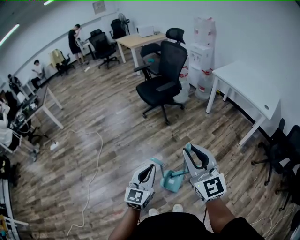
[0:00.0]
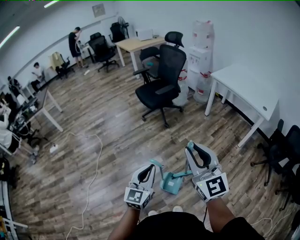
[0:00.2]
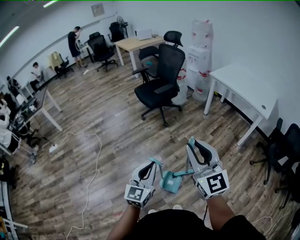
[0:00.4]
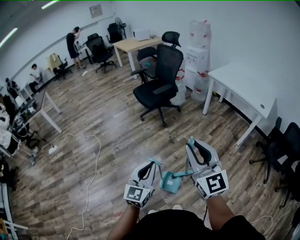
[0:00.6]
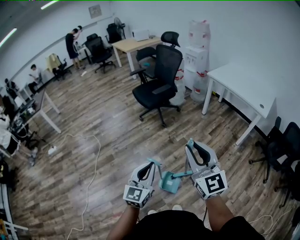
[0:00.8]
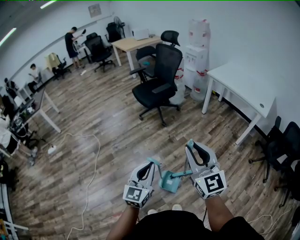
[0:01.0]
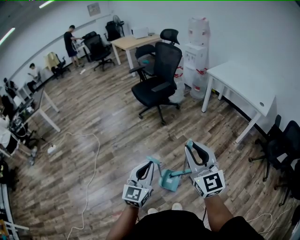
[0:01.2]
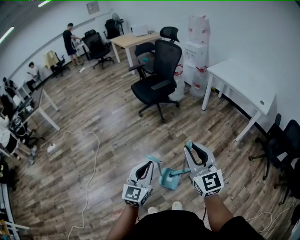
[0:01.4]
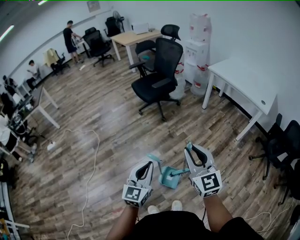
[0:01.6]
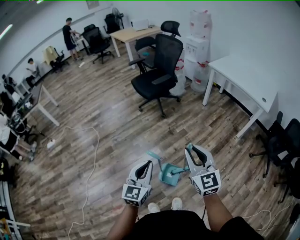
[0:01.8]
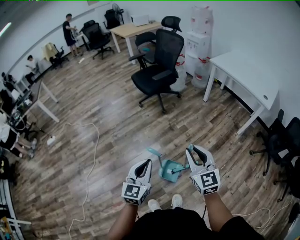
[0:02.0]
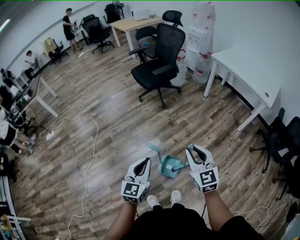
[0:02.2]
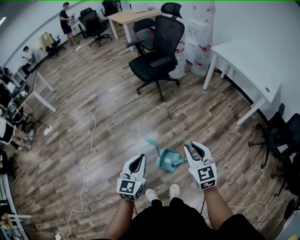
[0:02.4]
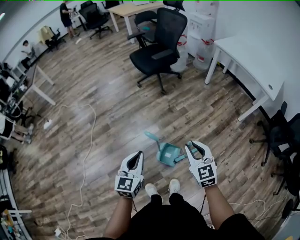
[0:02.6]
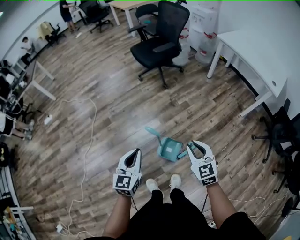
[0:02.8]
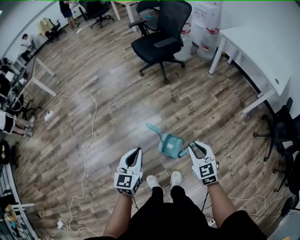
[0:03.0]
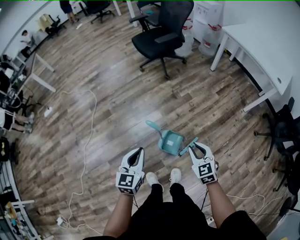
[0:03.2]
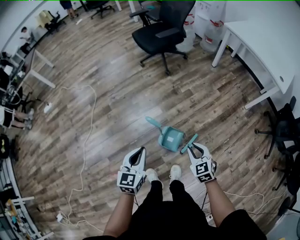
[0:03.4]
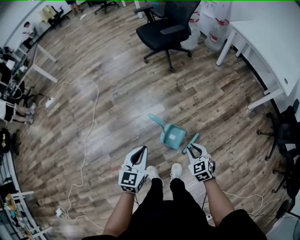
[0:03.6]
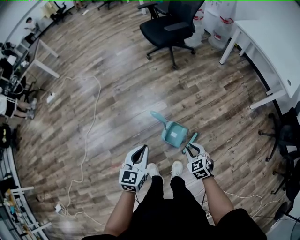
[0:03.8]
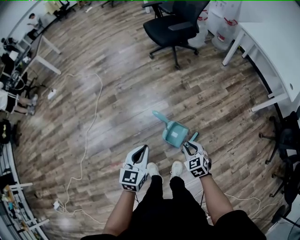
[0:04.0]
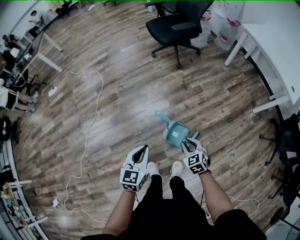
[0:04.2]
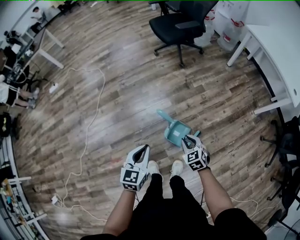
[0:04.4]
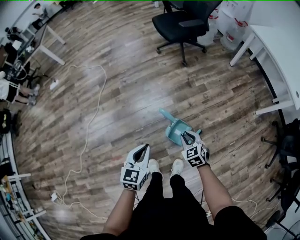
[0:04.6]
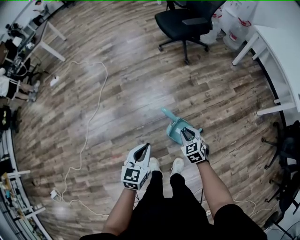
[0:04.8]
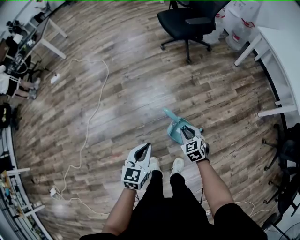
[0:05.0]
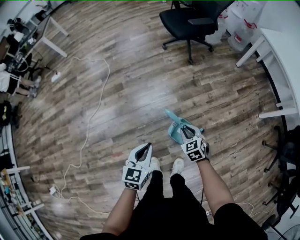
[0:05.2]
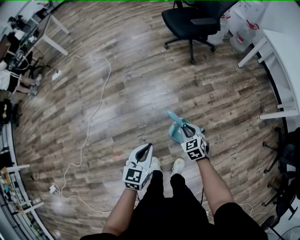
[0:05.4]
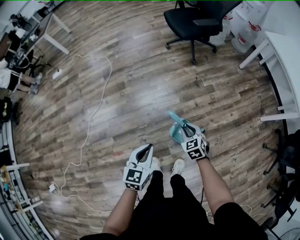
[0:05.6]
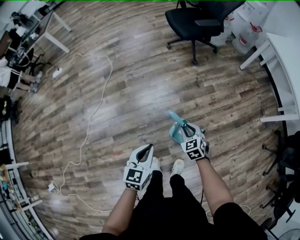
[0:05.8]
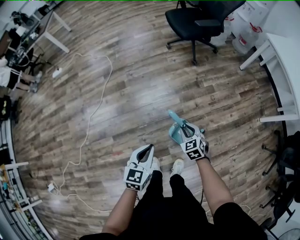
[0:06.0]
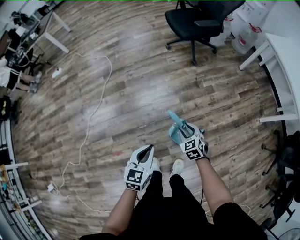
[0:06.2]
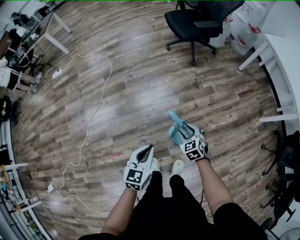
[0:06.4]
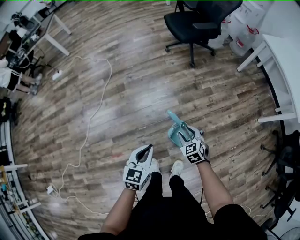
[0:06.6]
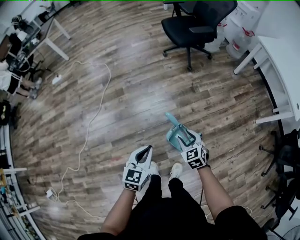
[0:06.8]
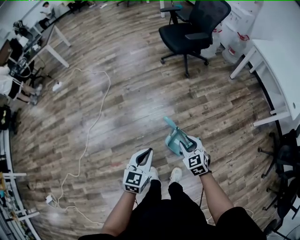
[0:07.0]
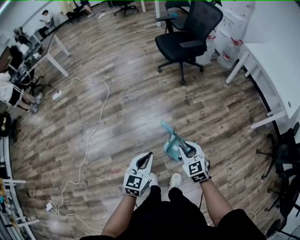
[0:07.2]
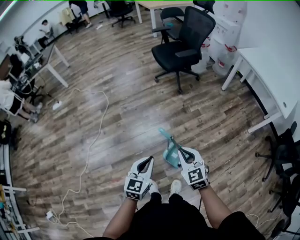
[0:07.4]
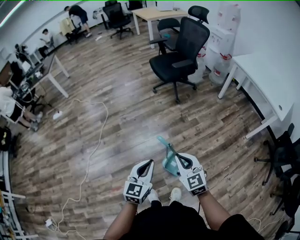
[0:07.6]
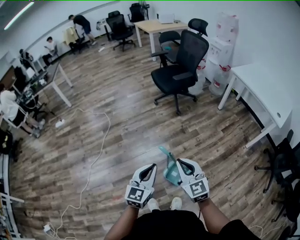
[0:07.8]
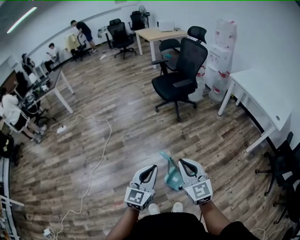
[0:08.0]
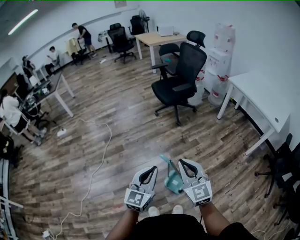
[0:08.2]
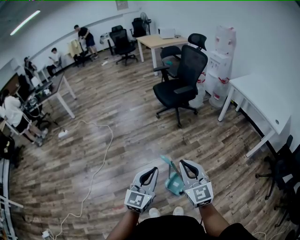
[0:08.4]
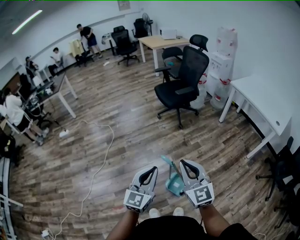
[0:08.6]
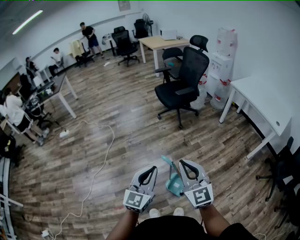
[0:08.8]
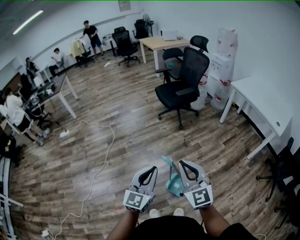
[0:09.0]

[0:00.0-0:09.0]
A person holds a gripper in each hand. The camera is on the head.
0:00.0 to 0:01.6: The right gripper heads downward, covering approximately 5 cm.
0:01.6 to 0:03.0: The right gripper shifts roughly 20 cm downward, and rotates approximately 30 degrees. The left gripper travels downward by approximately 10 cm.
0:03.0 to 0:04.4: The right gripper heads downward and to the left, covering some 15 cm; the left gripper travels downward by approximately 5 cm.
0:04.4 to 0:06.0: The right gripper goes approximately 10 cm forward and to the left.
0:06.0 to 0:07.6: The right gripper travels upward and backward by some 25 cm, rotates some 30 degrees, and closes. Meanwhile the left gripper moves upward, approximately 10 cm.
0:07.6 to 0:09.0: The grippers both shift upward by roughly 15 cm. The right gripper rotates about 20 degrees.

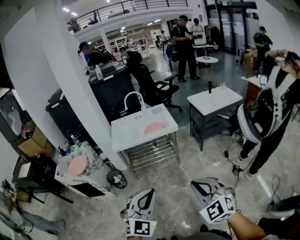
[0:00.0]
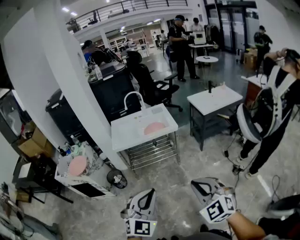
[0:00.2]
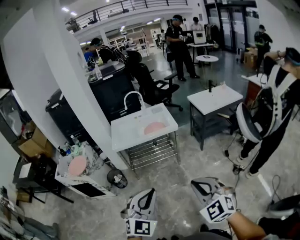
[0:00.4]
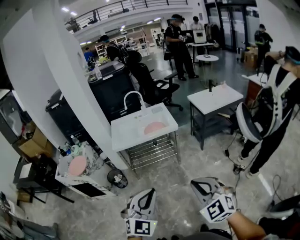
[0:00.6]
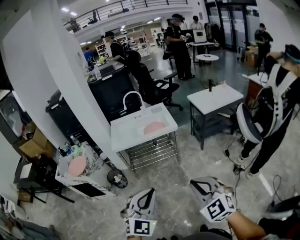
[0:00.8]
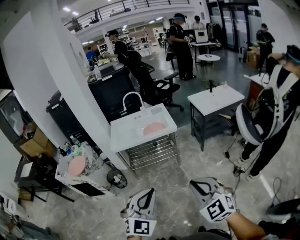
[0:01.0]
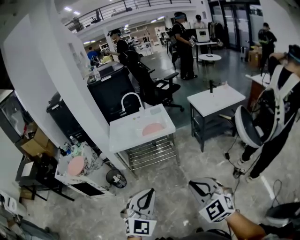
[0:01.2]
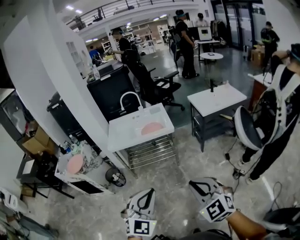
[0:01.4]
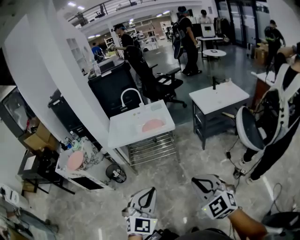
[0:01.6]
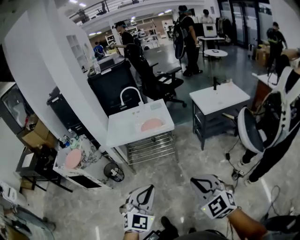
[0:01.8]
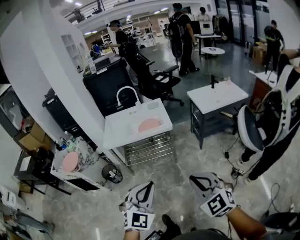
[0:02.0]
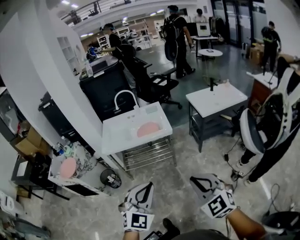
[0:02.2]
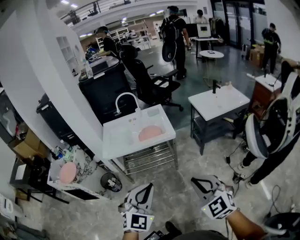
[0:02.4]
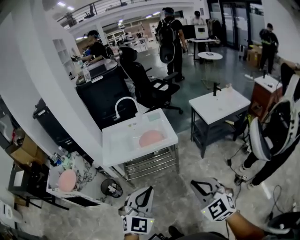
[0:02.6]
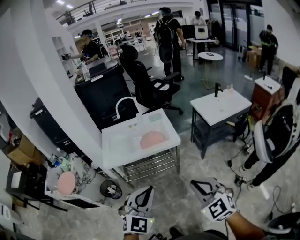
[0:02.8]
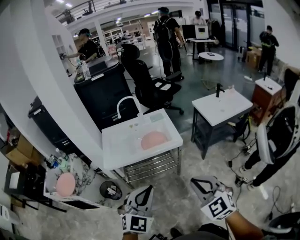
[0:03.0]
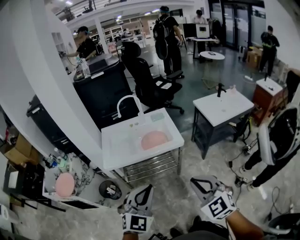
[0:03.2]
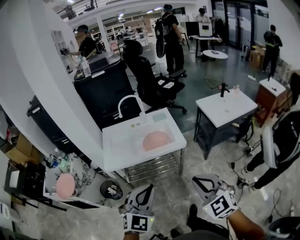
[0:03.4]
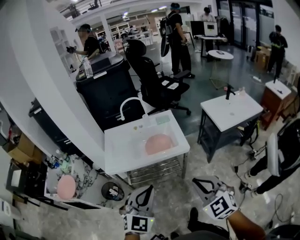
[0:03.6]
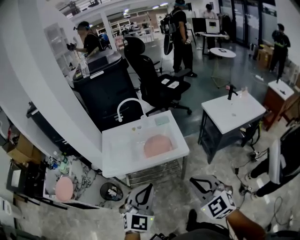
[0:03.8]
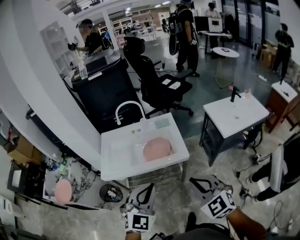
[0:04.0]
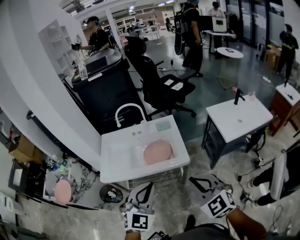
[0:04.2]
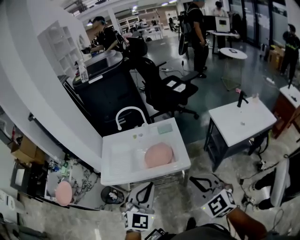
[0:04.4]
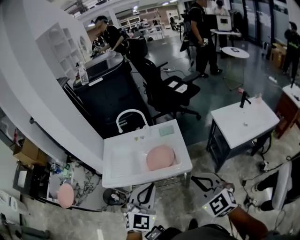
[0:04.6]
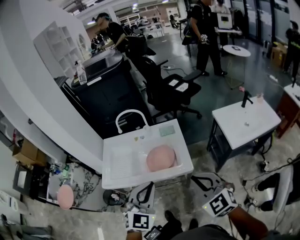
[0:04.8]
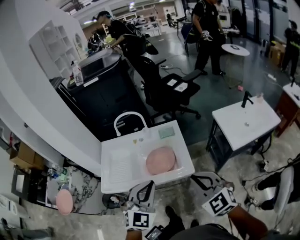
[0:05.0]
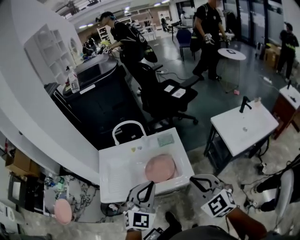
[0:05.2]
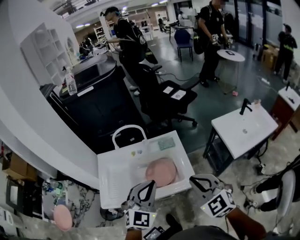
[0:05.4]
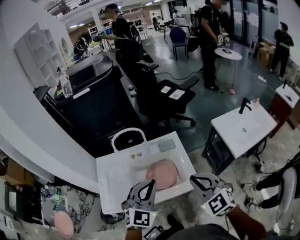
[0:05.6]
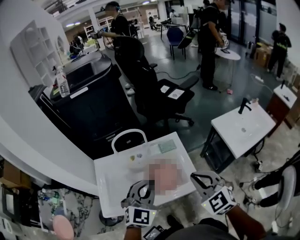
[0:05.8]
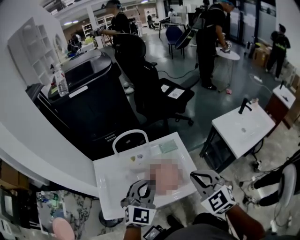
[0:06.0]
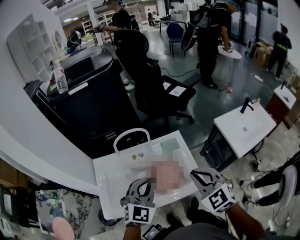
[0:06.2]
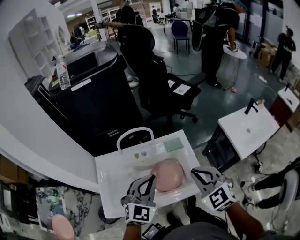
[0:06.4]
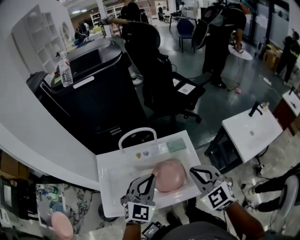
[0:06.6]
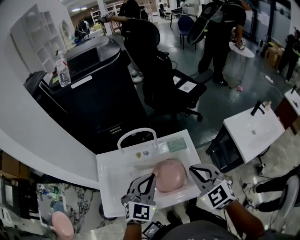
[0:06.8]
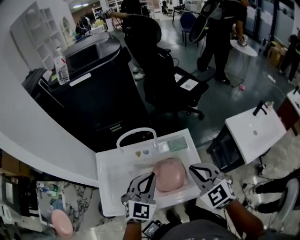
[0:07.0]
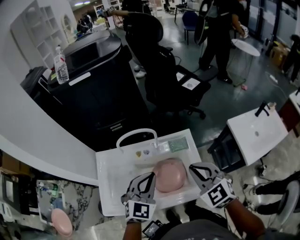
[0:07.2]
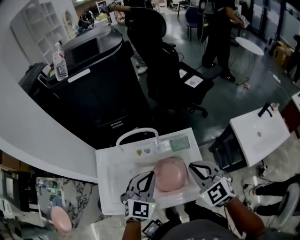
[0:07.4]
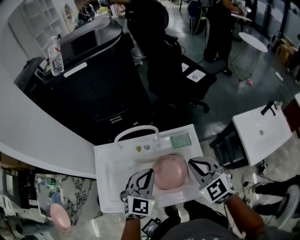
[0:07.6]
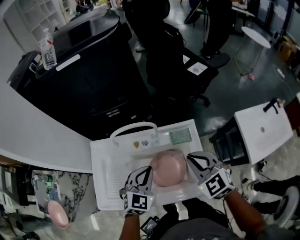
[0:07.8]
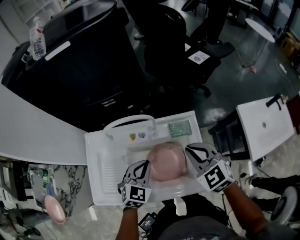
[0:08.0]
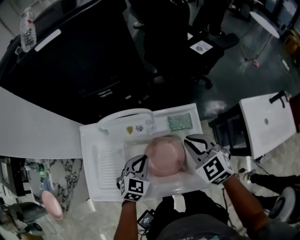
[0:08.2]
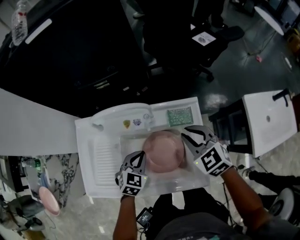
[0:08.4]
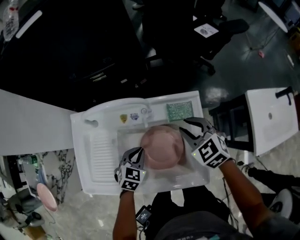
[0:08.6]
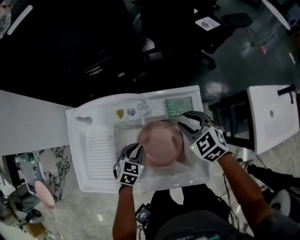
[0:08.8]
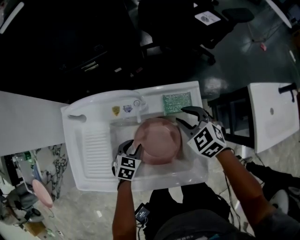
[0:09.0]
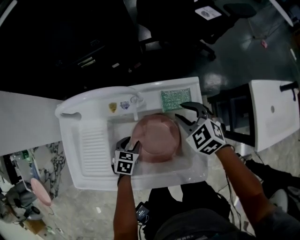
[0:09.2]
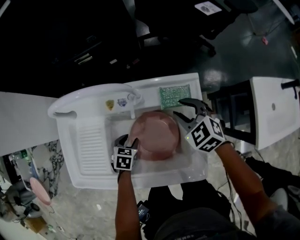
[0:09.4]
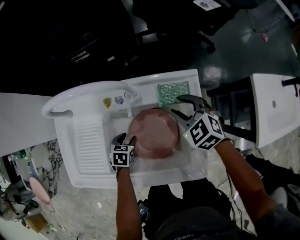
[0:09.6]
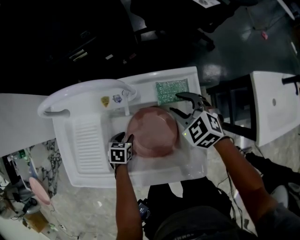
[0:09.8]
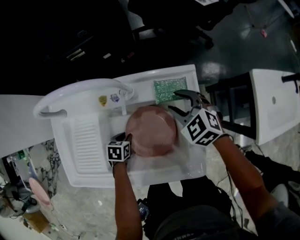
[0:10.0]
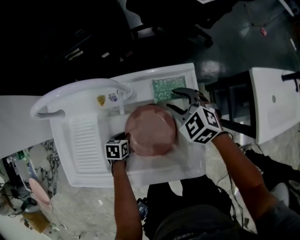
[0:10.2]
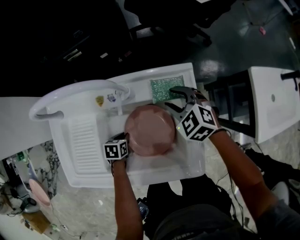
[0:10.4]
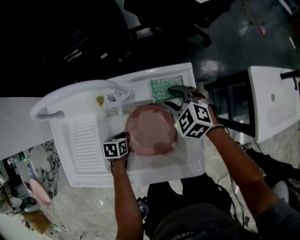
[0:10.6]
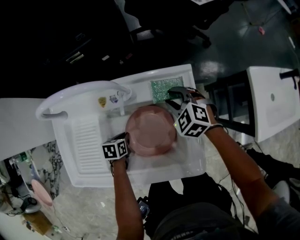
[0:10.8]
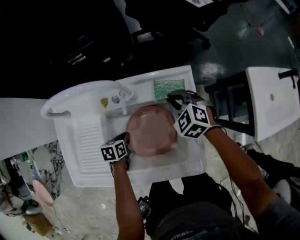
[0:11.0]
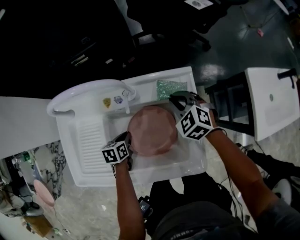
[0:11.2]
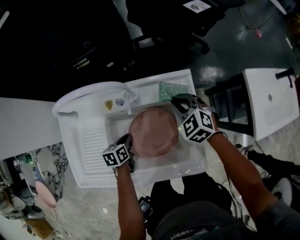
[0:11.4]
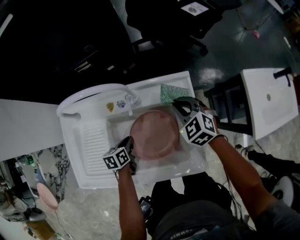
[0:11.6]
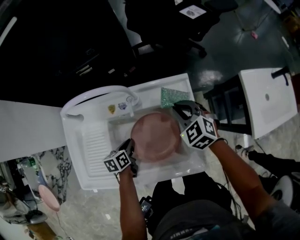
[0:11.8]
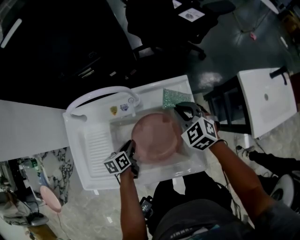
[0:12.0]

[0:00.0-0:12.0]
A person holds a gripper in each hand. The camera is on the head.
0:00.0 to 0:01.6: Both grippers move to the right, about 10 cm.
0:01.6 to 0:03.0: The two grippers go some 25 cm forward and to the left.
0:03.0 to 0:04.4: Both grippers move forward, roughly 25 cm.
0:04.4 to 0:06.0: The grippers both shift forward by roughly 25 cm.
0:06.0 to 0:07.6: The left gripper is displaced forward and downward by some 15 cm. Meanwhile the right gripper moves forward, about 15 cm.
0:07.6 to 0:09.0: The right gripper heads downward and forward, covering about 25 cm, and opens its fingers. The left gripper moves downward, about 30 cm, tilts its fingers roughly 30 degrees downward, and opens.
0:09.0 to 0:10.4: The left gripper travels downward by roughly 10 cm, rotates approximately 30 degrees, and closes up. The right gripper moves downward, some 5 cm.
0:10.4 to 0:12.0: The left gripper is displaced upward by roughly 10 cm, and rotates approximately 30 degrees; the right gripper is displaced upward by roughly 5 cm, and closes up.

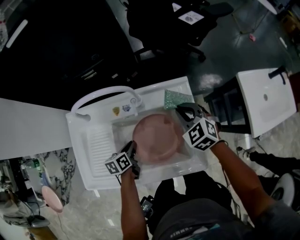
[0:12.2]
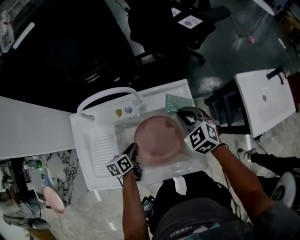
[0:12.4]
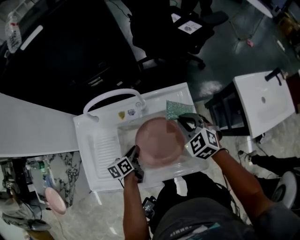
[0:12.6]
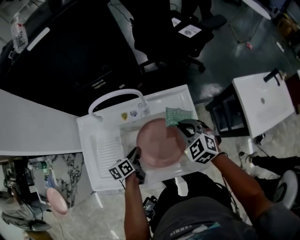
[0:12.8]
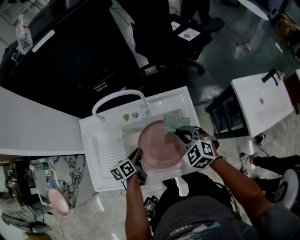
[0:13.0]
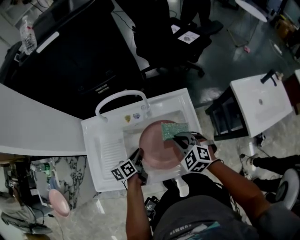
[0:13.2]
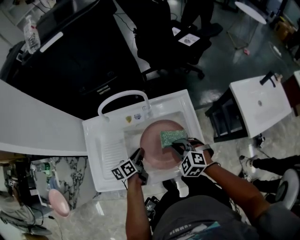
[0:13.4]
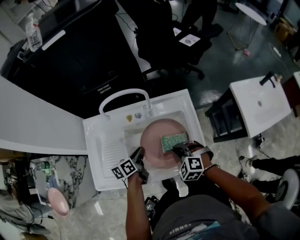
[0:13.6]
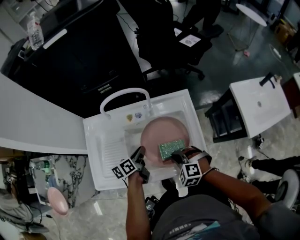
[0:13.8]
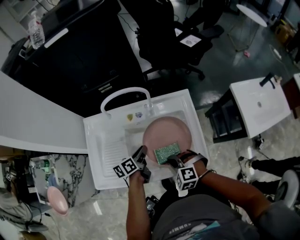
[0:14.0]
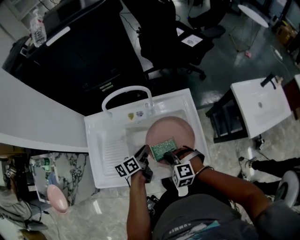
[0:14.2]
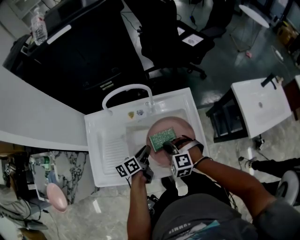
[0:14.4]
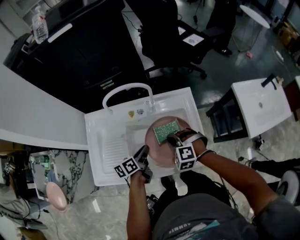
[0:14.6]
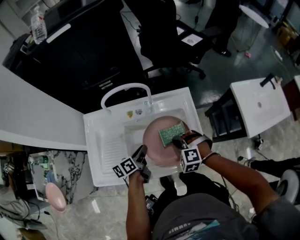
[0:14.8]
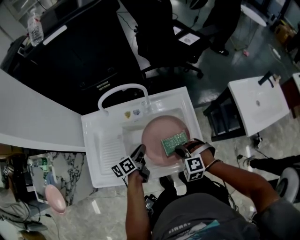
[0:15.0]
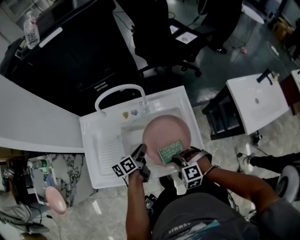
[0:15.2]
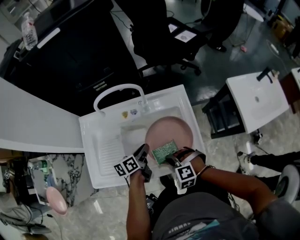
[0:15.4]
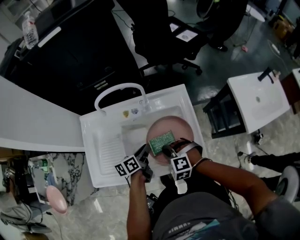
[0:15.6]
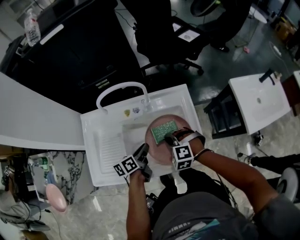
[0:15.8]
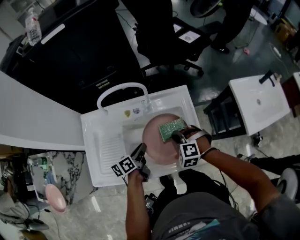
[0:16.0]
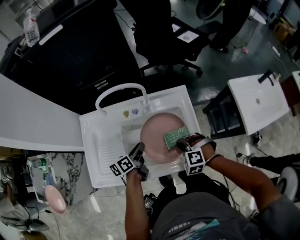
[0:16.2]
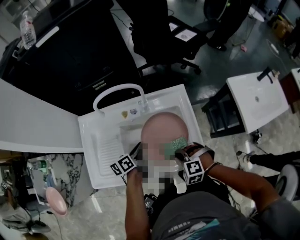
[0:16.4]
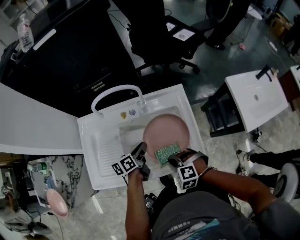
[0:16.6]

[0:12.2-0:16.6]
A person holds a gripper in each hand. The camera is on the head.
0:12.2 to 0:13.6: The right gripper heads backward and to the left, covering approximately 20 cm, and changes its angle by about 20 degrees. Meanwhile the left gripper is displaced upward by about 10 cm.
0:13.6 to 0:15.2: The right gripper goes forward and backward, approximately 10 cm each way, reversing 2 times.
0:15.2 to 0:16.6: The right gripper moves approximately 10 cm forward and comes back.
